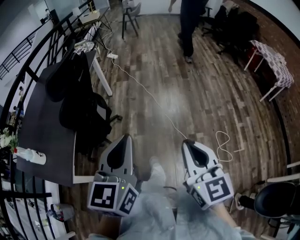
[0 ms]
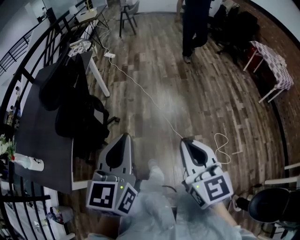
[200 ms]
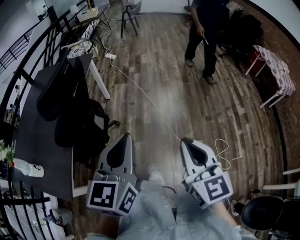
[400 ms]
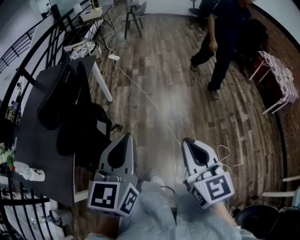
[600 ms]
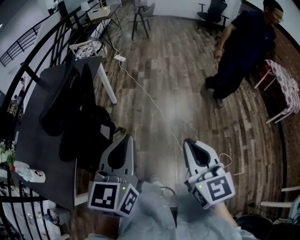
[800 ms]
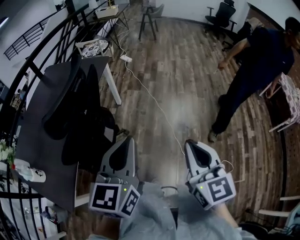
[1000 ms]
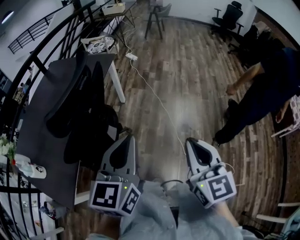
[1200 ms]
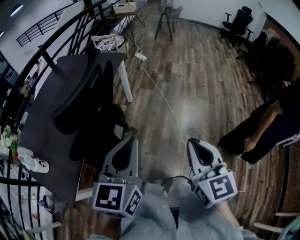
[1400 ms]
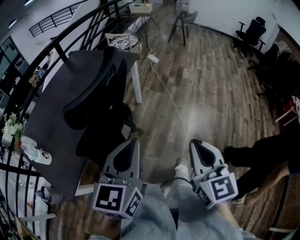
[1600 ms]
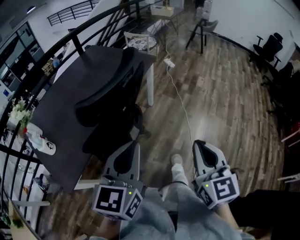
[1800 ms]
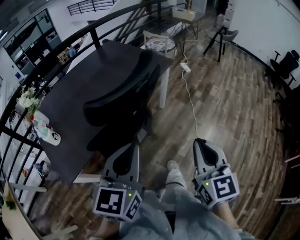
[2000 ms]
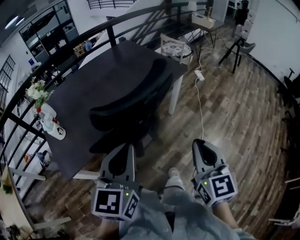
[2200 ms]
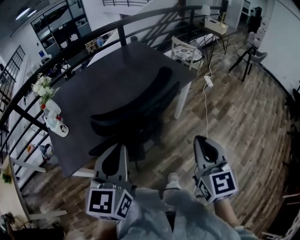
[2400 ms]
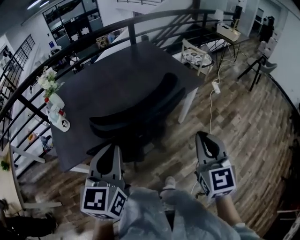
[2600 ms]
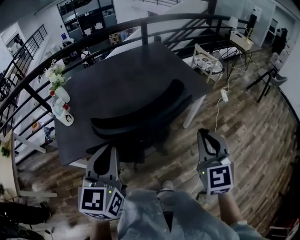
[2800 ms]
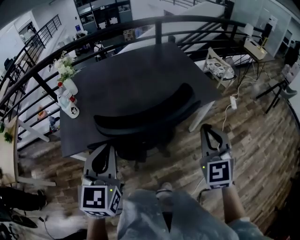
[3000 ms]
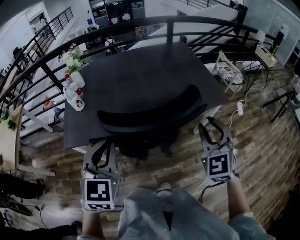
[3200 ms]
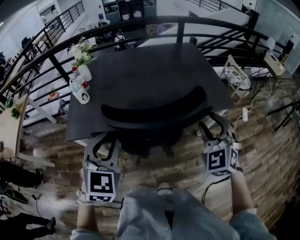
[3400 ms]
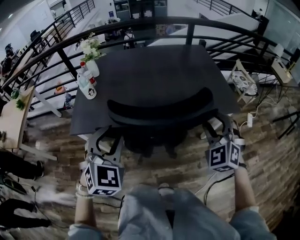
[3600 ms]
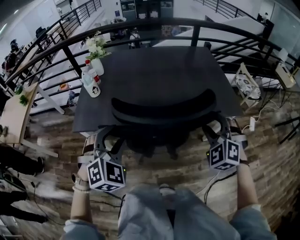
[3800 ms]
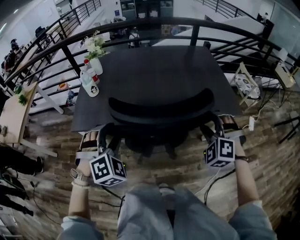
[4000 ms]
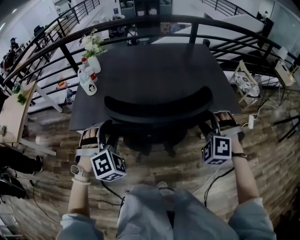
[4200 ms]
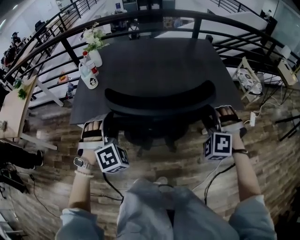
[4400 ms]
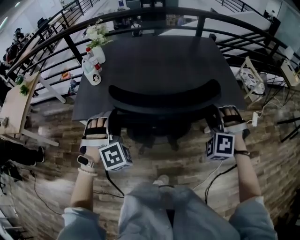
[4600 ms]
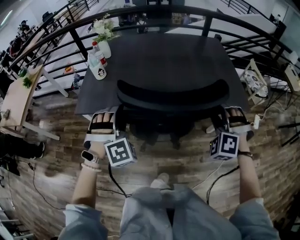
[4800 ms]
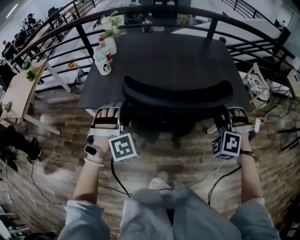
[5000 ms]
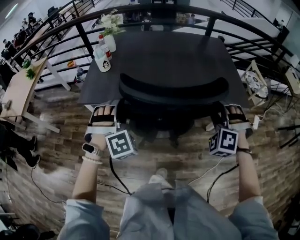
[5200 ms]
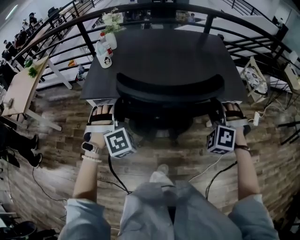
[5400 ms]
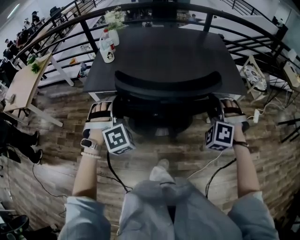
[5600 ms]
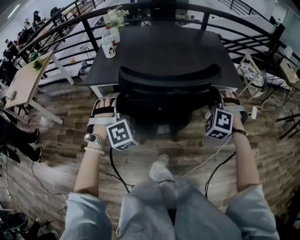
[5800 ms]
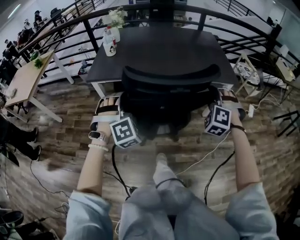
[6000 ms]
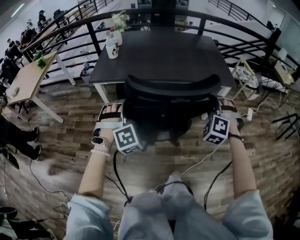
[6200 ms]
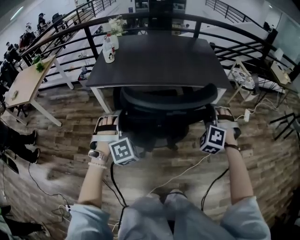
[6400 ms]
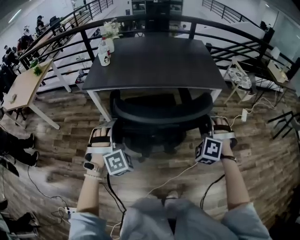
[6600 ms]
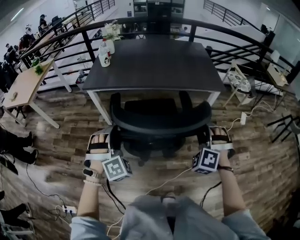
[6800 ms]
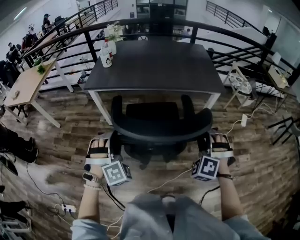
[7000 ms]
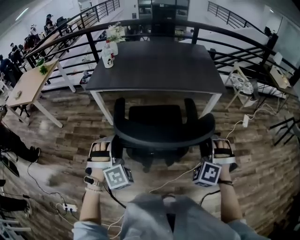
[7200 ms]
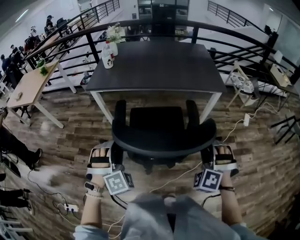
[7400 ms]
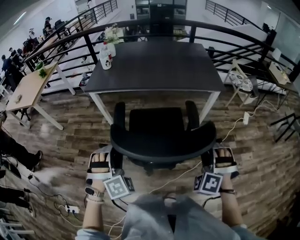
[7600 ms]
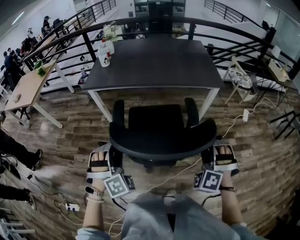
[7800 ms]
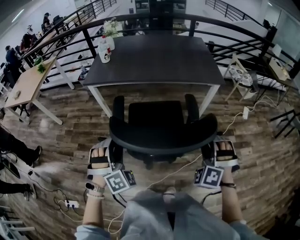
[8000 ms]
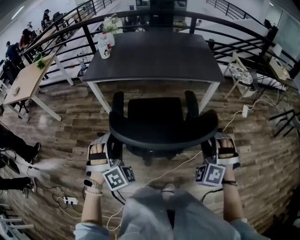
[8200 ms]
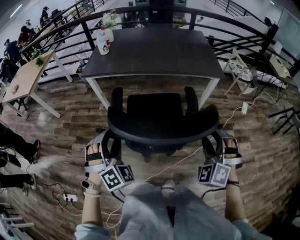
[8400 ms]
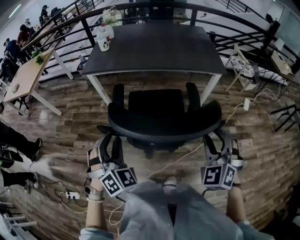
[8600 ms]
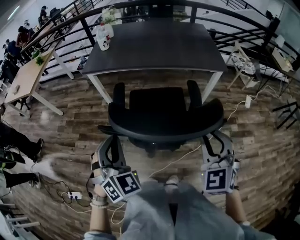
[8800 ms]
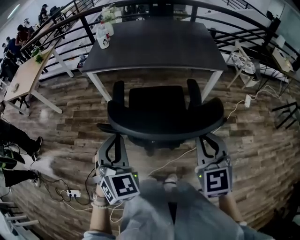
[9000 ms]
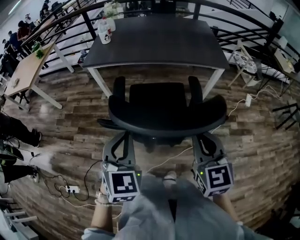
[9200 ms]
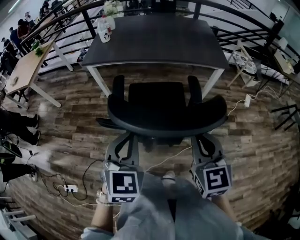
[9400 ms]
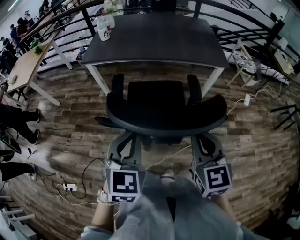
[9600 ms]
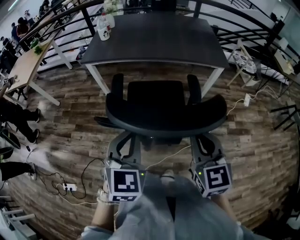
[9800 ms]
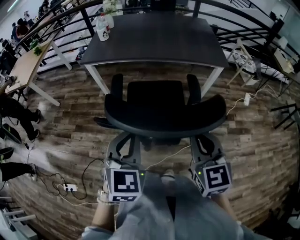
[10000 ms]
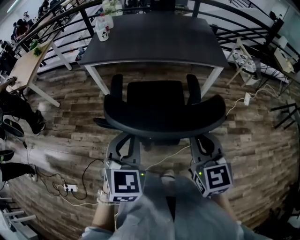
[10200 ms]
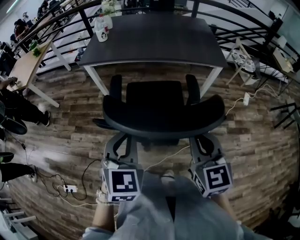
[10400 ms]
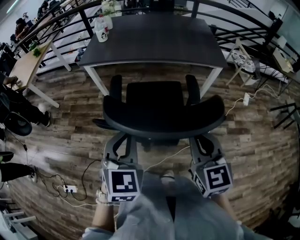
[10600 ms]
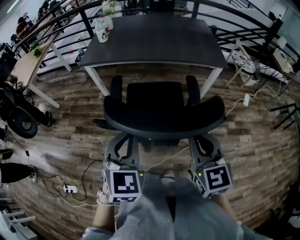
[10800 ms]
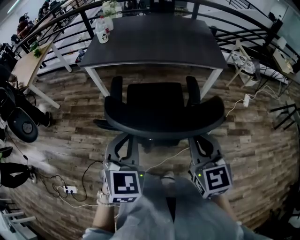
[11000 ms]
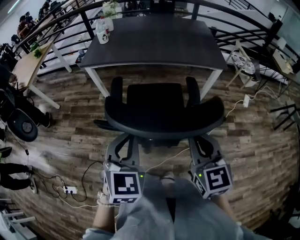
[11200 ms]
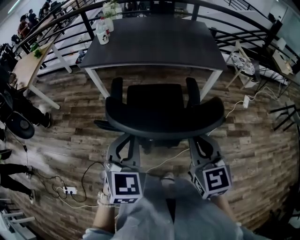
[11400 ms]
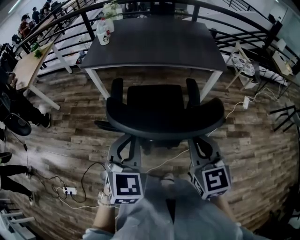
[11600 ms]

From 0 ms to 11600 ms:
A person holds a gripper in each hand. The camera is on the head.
From 0 ms to 1400 ms: The grippers both shift forward by approximately 25 cm.
From 1400 ms to 2800 ms: The right gripper moves some 35 cm, and rotates about 50 degrees, while the left gripper ends up some 15 cm from where it was, and swivels approximately 60 degrees.
From 2800 ms to 4400 ms: The right gripper moves about 20 cm, rolls counterclockwise, seen from behind, by about 70 degrees, and opens up. The left gripper travels downward by about 15 cm, rolls clockwise, seen from behind, by roughly 70 degrees, and opens up.
From 4400 ms to 5800 ms: Both grippers move backward, some 15 cm.
From 5800 ms to 7200 ms: The two grippers go about 25 cm backward.
From 7200 ms to 8800 ms: The right gripper is displaced upward and backward by some 10 cm, turns by some 40 degrees, and closes up; the left gripper heads backward and upward, covering approximately 10 cm, rotates approximately 40 degrees, and closes.
From 8800 ms to 10200 ms: The left gripper is displaced to the right by roughly 10 cm, and rotates roughly 30 degrees. Meanwhile the right gripper rotates some 30 degrees, and closes its fingers.
From 10200 ms to 11600 ms: Neither gripper changes place.

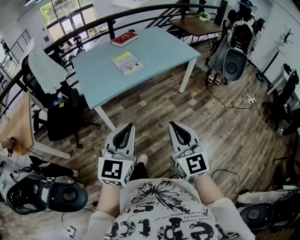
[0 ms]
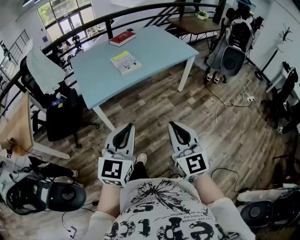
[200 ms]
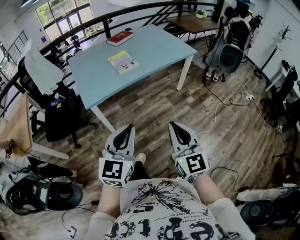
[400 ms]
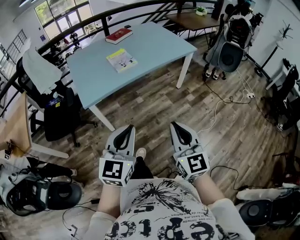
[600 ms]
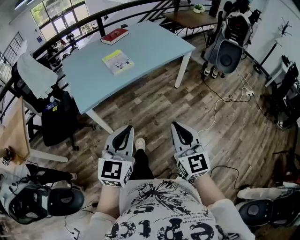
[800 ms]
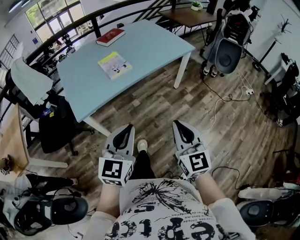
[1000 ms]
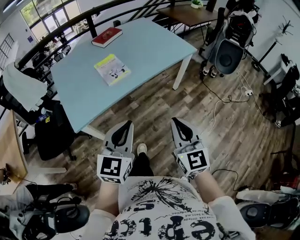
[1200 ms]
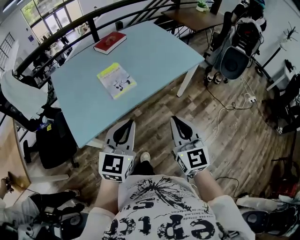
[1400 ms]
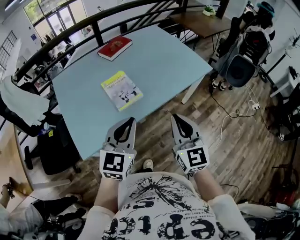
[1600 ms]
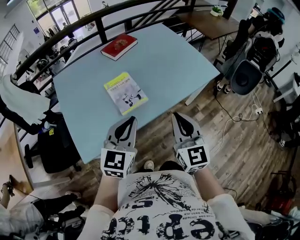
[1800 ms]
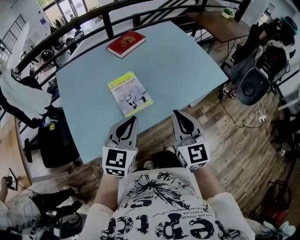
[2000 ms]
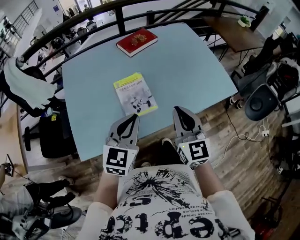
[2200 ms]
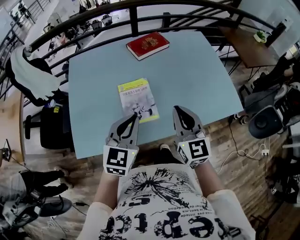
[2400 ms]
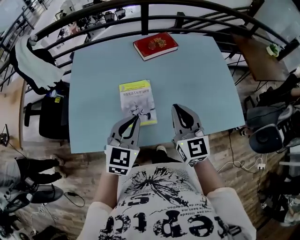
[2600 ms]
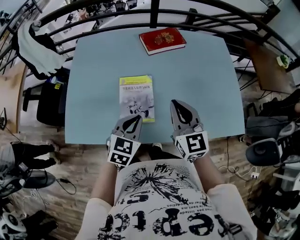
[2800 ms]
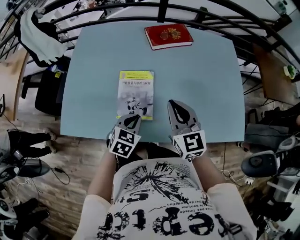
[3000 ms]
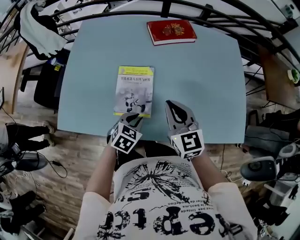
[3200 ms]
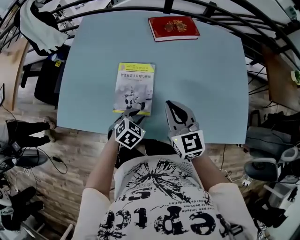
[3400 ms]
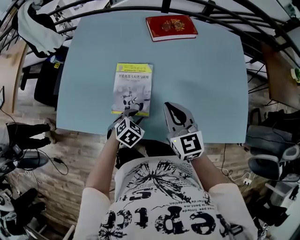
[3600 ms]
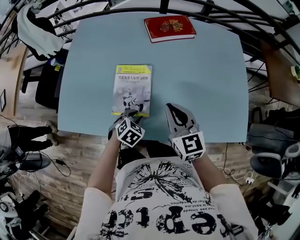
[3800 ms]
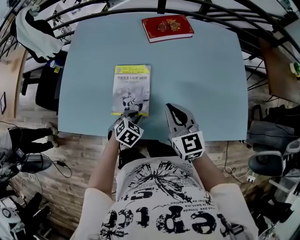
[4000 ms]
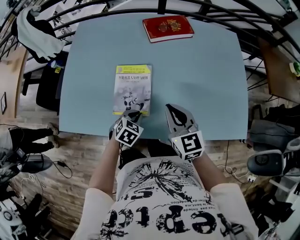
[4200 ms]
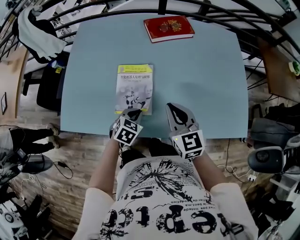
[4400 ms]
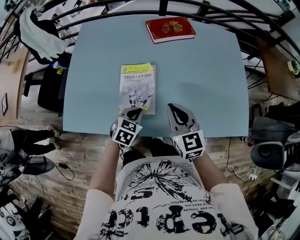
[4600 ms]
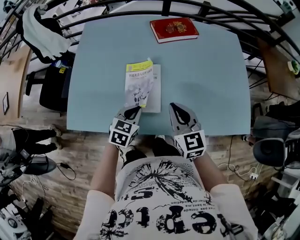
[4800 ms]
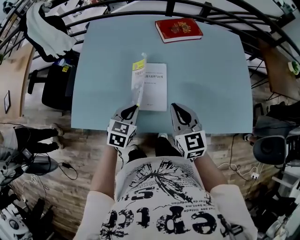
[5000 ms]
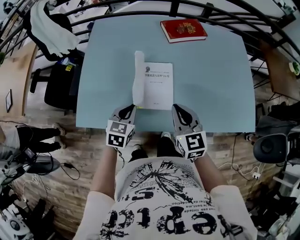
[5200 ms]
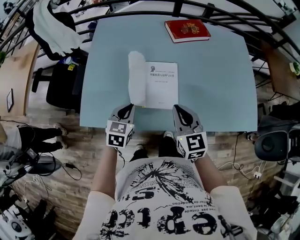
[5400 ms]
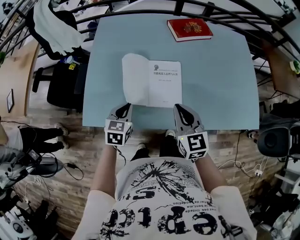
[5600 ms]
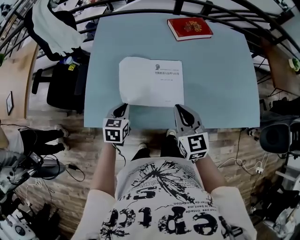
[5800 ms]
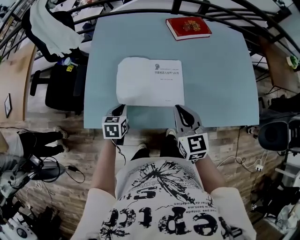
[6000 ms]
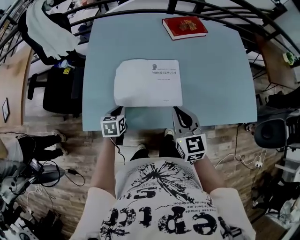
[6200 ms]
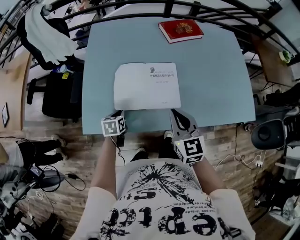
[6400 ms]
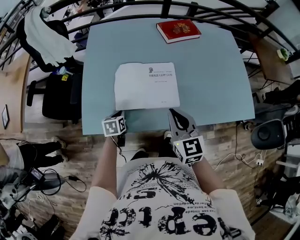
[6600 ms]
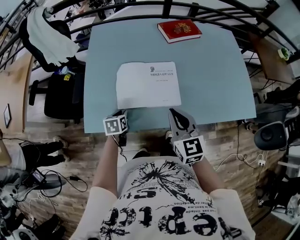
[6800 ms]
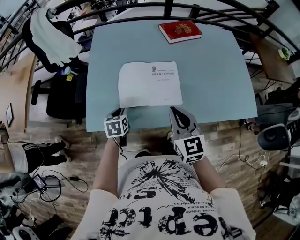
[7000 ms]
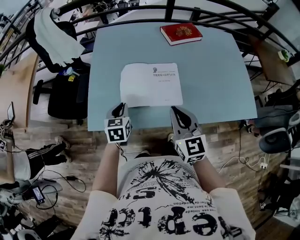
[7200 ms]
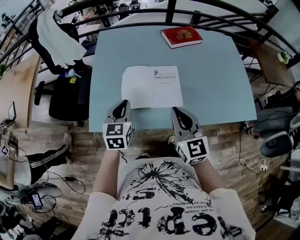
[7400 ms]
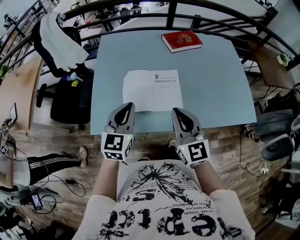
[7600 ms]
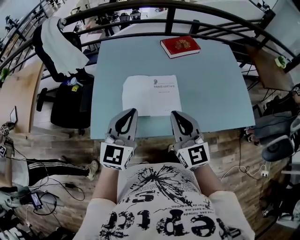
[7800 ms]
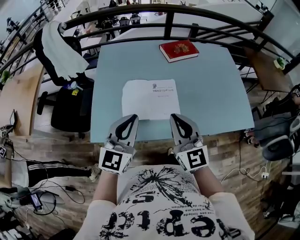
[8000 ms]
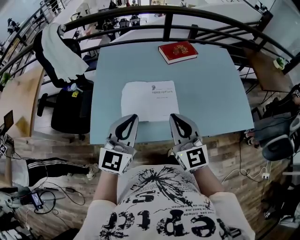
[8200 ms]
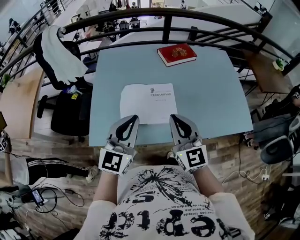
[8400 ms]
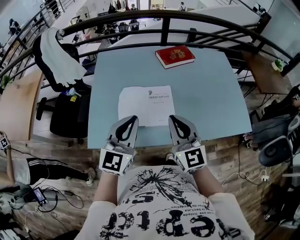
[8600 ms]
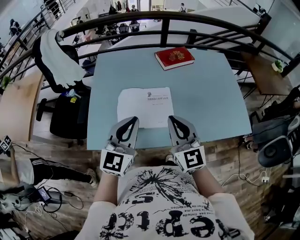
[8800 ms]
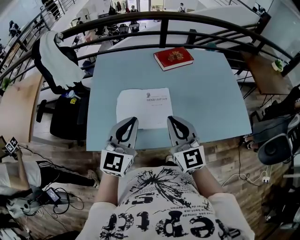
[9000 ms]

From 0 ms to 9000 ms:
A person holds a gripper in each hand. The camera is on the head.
From 0 ms to 1600 ms: The pair of grippers is taken forward, about 40 cm.
From 1600 ms to 3000 ms: The right gripper moves some 35 cm, and swivels some 40 degrees; the left gripper moves roughly 35 cm, and tilts its fingers some 30 degrees downward.
From 3000 ms to 4400 ms: The left gripper moves downward, some 5 cm, and opens and closes again; the right gripper changes place by roughly 5 cm.
From 4400 ms to 6000 ms: The left gripper is displaced to the left by about 25 cm, and turns by roughly 30 degrees. Meanwhile the right gripper is displaced to the left by about 15 cm.
From 6000 ms to 7600 ms: The left gripper goes roughly 20 cm upward, angles its fingers upward, by some 30 degrees, and opens, then closes again, while the right gripper moves upward, about 10 cm.
From 7600 ms to 9000 ms: The left gripper heads to the right and upward, covering roughly 10 cm; the right gripper moves approximately 5 cm.

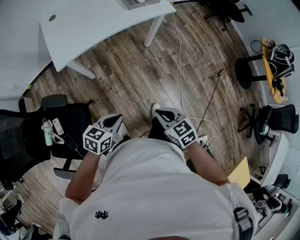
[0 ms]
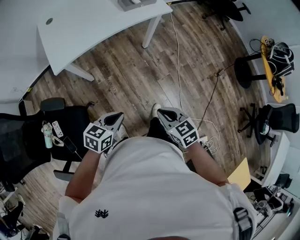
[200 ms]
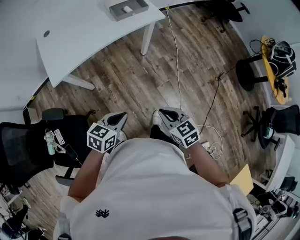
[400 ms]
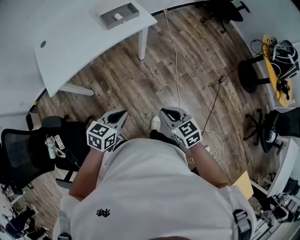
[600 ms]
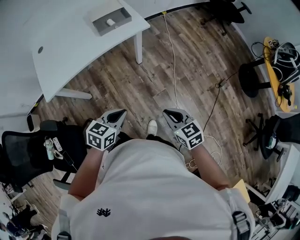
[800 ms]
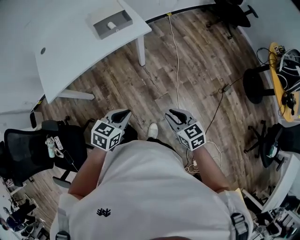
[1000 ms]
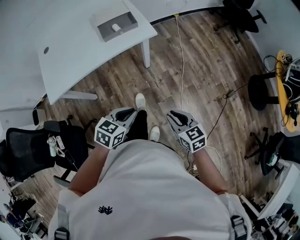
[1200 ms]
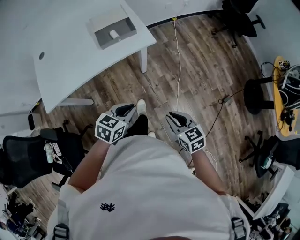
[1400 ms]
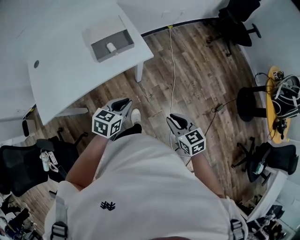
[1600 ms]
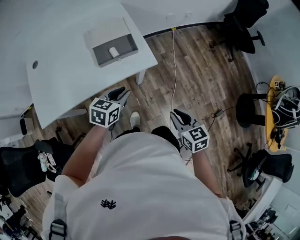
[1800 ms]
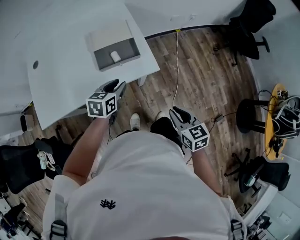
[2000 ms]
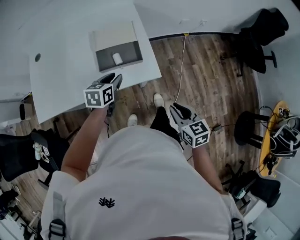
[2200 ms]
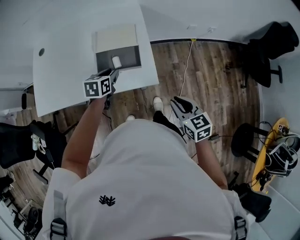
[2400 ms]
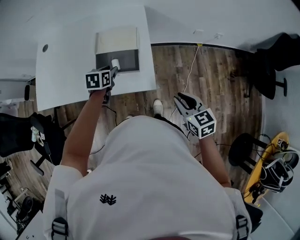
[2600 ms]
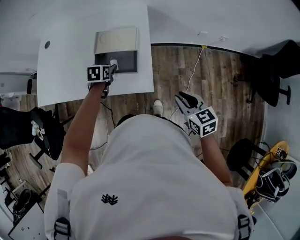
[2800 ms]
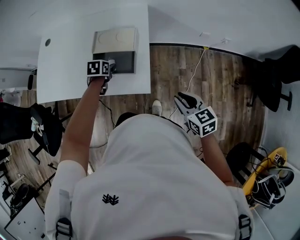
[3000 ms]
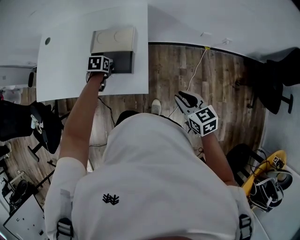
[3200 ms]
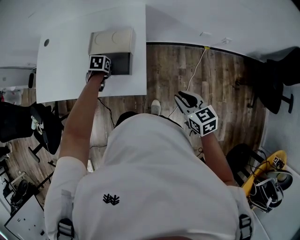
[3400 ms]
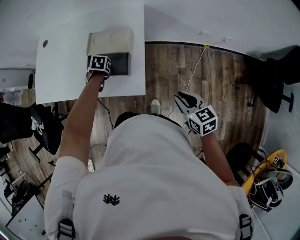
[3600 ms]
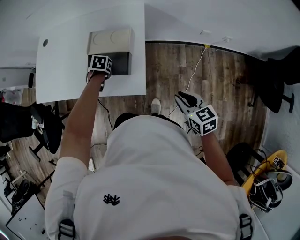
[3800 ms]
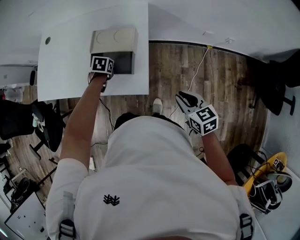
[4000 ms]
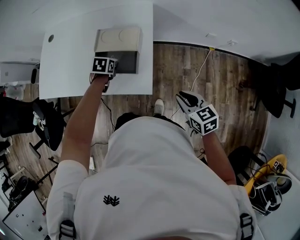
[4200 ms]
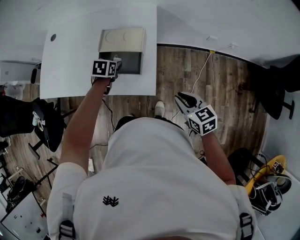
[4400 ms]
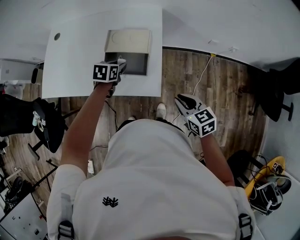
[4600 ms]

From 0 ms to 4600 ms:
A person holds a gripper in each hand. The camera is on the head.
From 0 ms to 1600 ms: The two grippers go approximately 40 cm forward and to the right.
From 1600 ms to 3000 ms: The right gripper moves approximately 35 cm, and rotates about 30 degrees. Meanwhile the left gripper moves roughly 35 cm, rotates approximately 50 degrees, and opens its fingers.
From 3000 ms to 4600 ms: The left gripper moves upward, roughly 5 cm.
